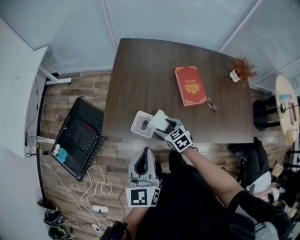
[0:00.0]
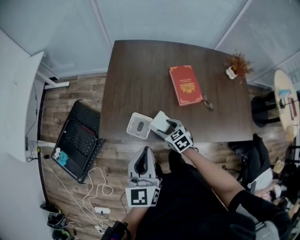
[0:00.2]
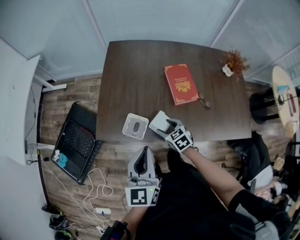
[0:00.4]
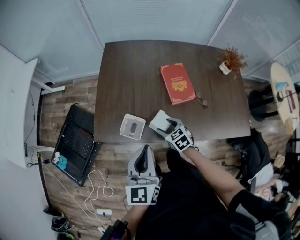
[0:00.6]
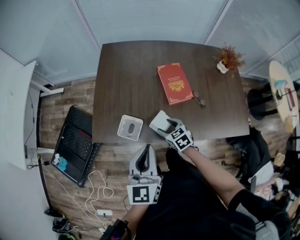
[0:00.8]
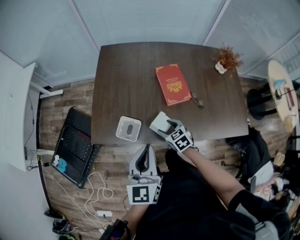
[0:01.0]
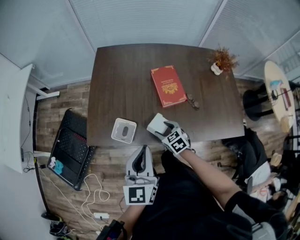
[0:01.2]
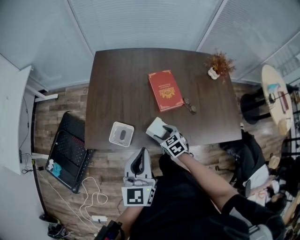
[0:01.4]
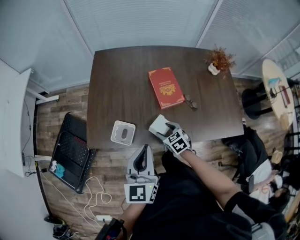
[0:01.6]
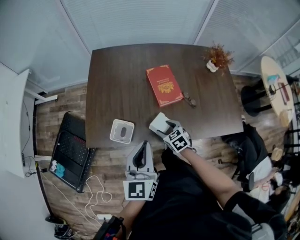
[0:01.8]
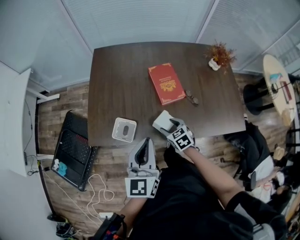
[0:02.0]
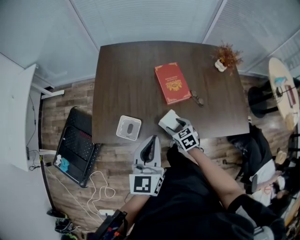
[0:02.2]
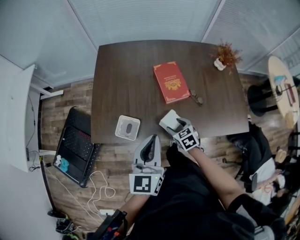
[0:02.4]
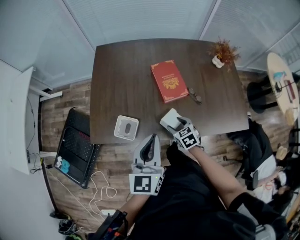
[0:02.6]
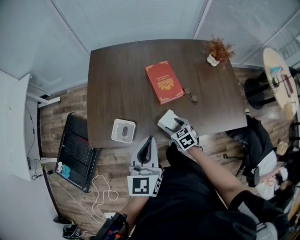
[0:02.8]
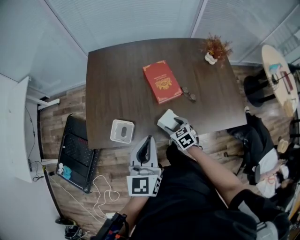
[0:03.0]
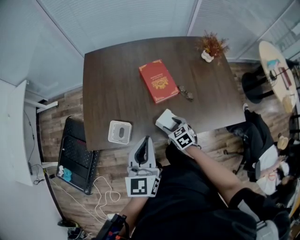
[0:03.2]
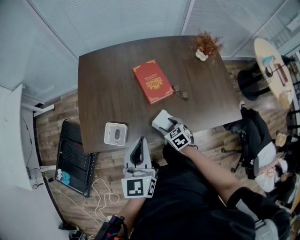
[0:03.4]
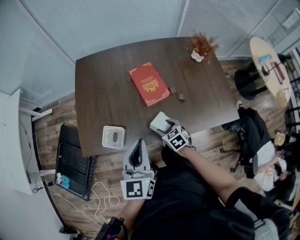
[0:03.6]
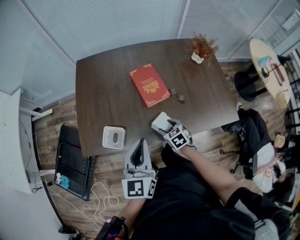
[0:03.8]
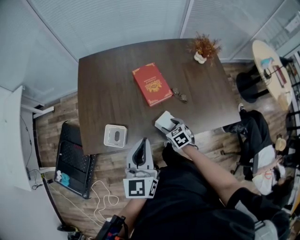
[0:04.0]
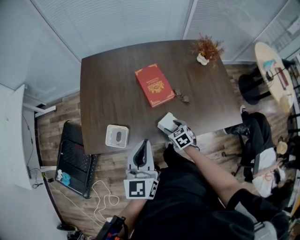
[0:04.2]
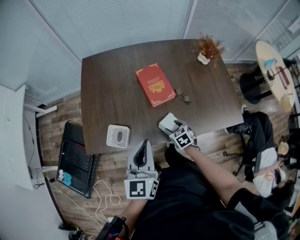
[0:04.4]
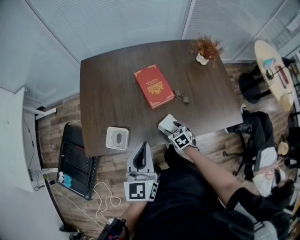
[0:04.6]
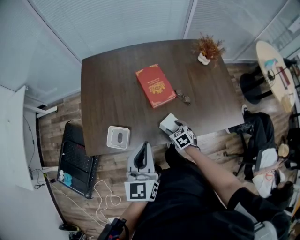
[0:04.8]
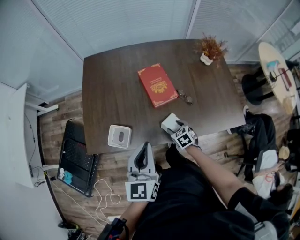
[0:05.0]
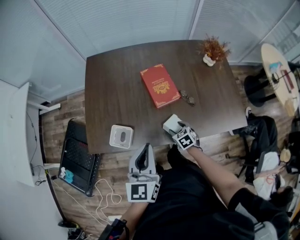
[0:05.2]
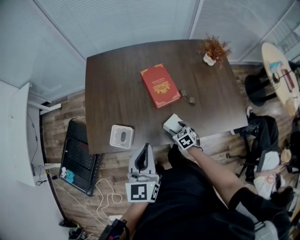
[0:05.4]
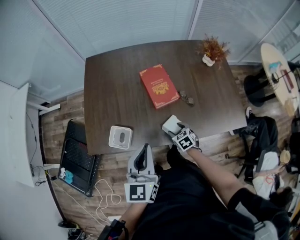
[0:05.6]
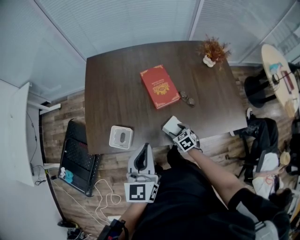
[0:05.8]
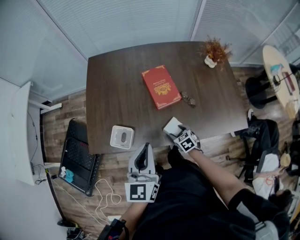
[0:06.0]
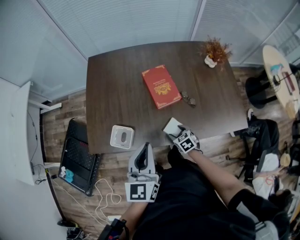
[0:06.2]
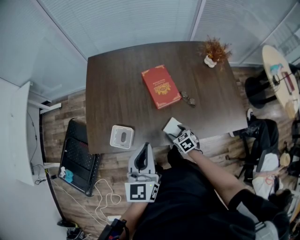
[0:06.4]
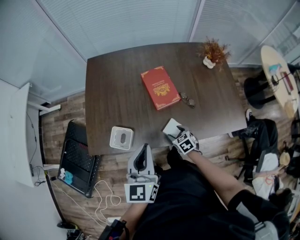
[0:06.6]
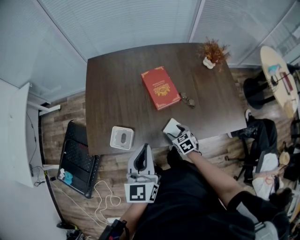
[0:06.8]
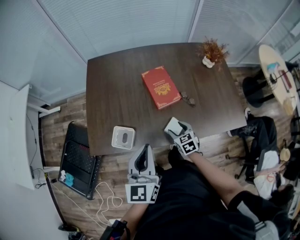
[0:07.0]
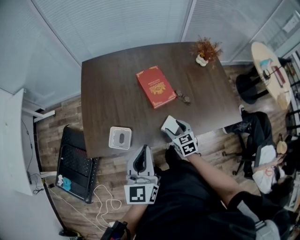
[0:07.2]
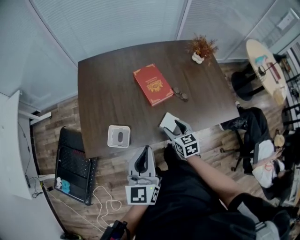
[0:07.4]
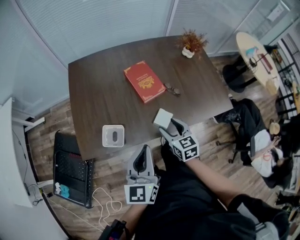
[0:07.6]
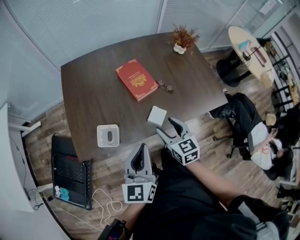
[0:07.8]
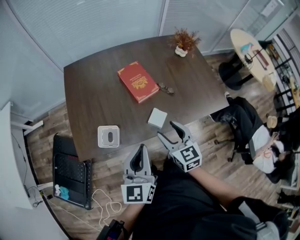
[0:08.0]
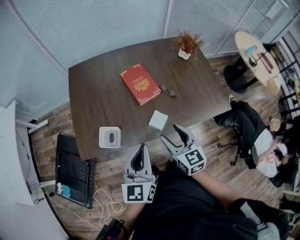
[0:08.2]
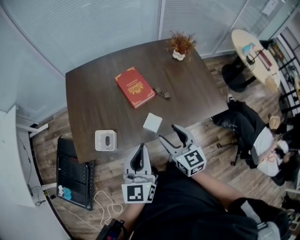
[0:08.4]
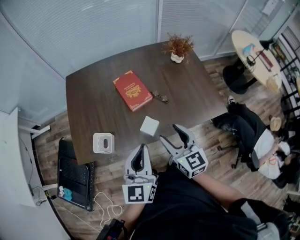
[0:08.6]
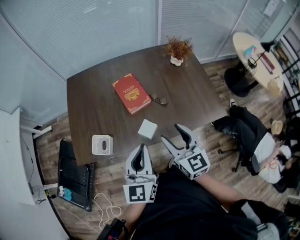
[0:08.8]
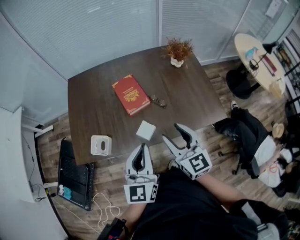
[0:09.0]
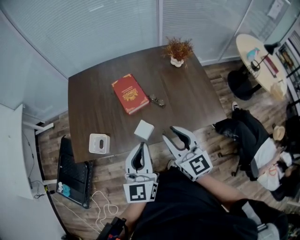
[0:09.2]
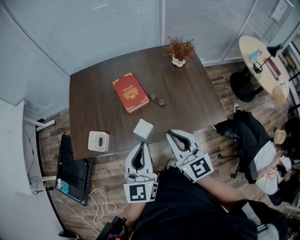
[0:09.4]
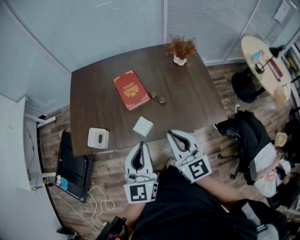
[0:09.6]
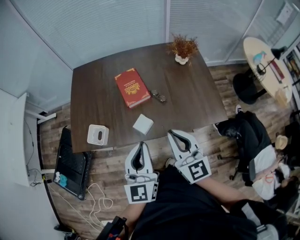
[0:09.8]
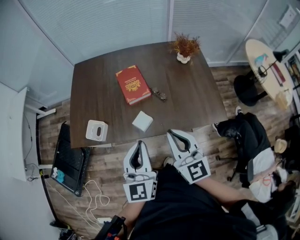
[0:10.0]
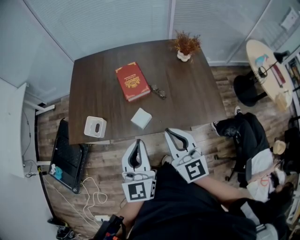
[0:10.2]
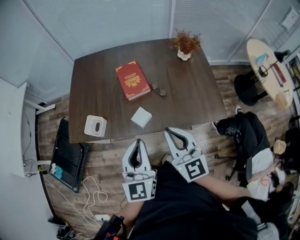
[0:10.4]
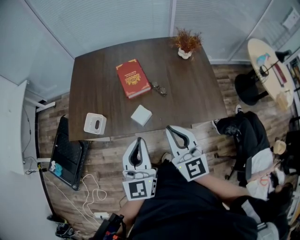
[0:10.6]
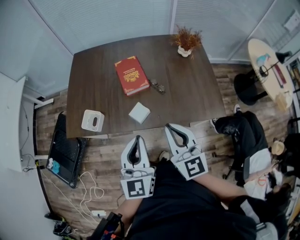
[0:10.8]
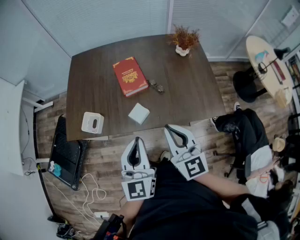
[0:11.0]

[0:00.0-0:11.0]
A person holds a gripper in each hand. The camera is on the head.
0.0 to 1.6 s: The grippers both shift to the right by approximately 10 cm.
1.6 to 3.2 s: The right gripper goes about 5 cm to the right.
3.2 to 4.8 s: The right gripper shifts by roughly 5 cm.
4.8 to 6.2 s: The grippers move only a little.
6.2 to 7.8 s: The right gripper shifts approximately 20 cm upward, and turns by about 30 degrees. Meanwhile the left gripper is displaced backward by about 5 cm.
7.8 to 9.4 s: The left gripper shifts some 15 cm to the right; the right gripper travels to the right and upward by some 20 cm, changes its angle by approximately 30 degrees, and closes up.
9.4 to 11.0 s: The left gripper changes place by some 5 cm.

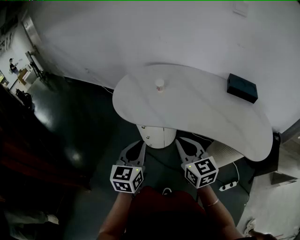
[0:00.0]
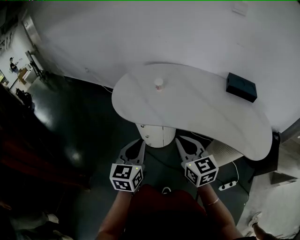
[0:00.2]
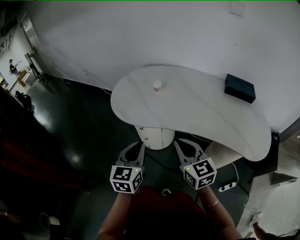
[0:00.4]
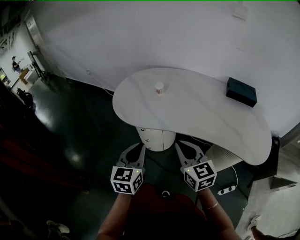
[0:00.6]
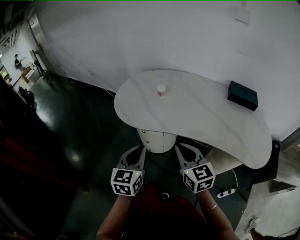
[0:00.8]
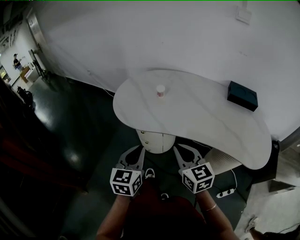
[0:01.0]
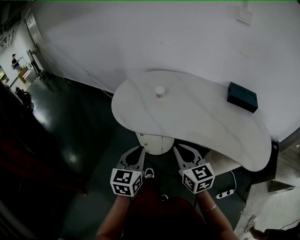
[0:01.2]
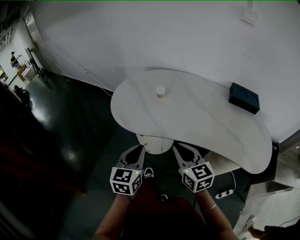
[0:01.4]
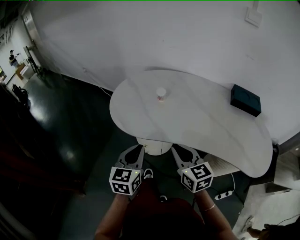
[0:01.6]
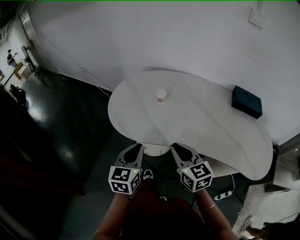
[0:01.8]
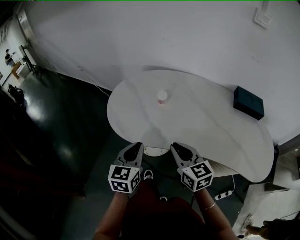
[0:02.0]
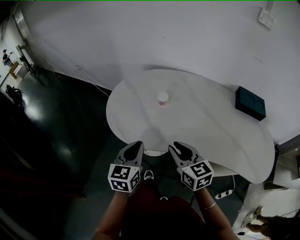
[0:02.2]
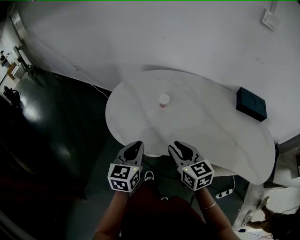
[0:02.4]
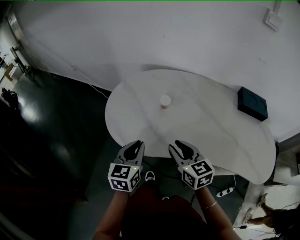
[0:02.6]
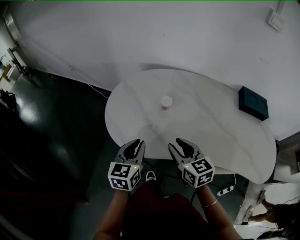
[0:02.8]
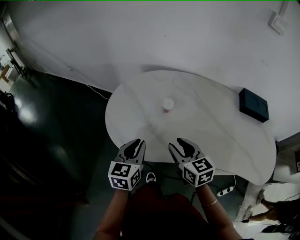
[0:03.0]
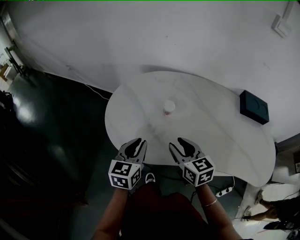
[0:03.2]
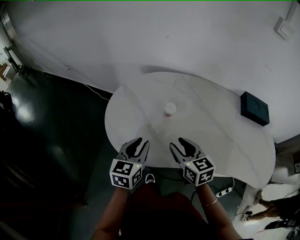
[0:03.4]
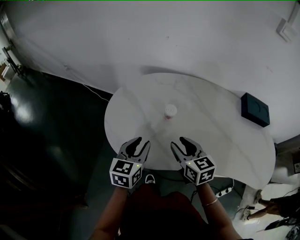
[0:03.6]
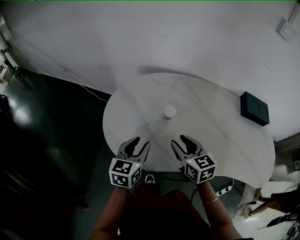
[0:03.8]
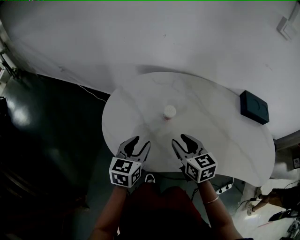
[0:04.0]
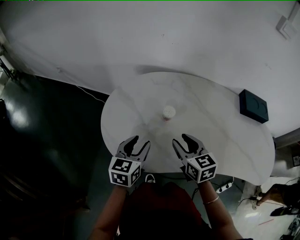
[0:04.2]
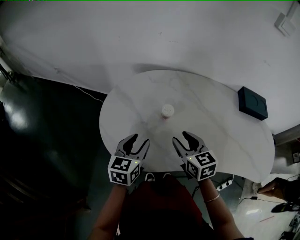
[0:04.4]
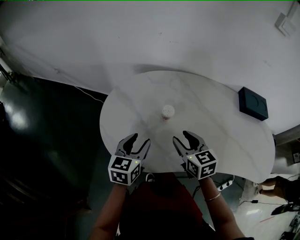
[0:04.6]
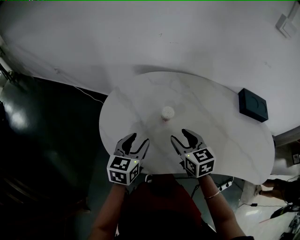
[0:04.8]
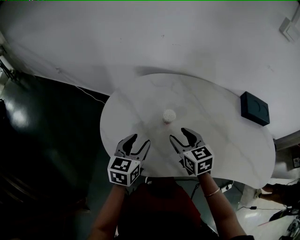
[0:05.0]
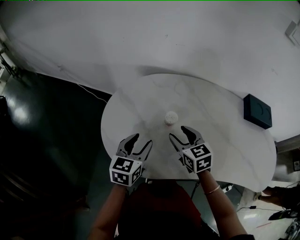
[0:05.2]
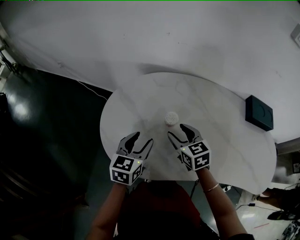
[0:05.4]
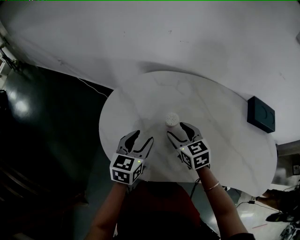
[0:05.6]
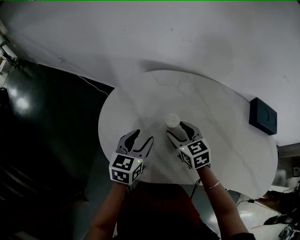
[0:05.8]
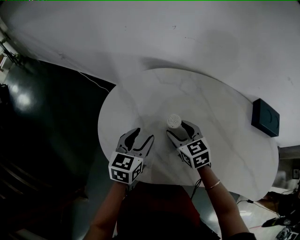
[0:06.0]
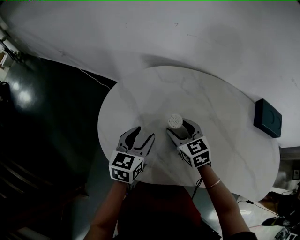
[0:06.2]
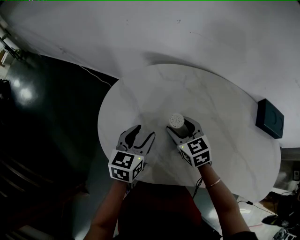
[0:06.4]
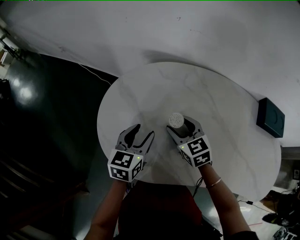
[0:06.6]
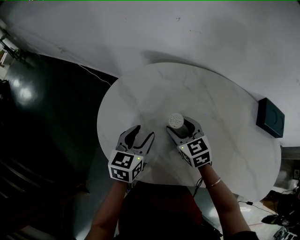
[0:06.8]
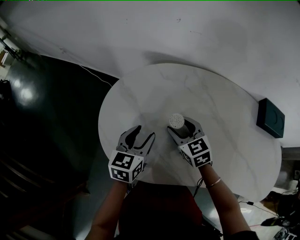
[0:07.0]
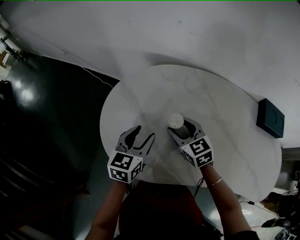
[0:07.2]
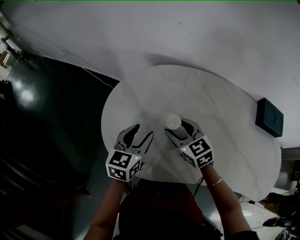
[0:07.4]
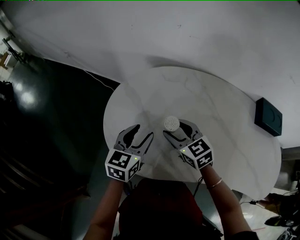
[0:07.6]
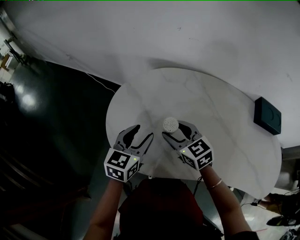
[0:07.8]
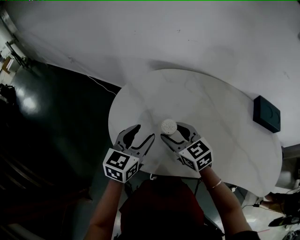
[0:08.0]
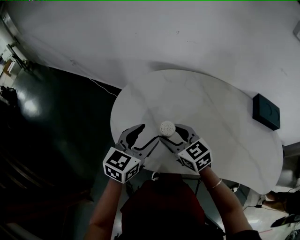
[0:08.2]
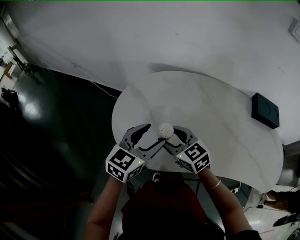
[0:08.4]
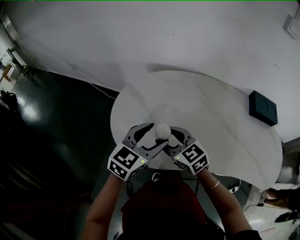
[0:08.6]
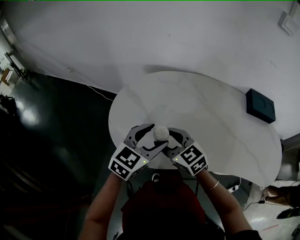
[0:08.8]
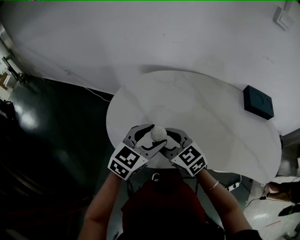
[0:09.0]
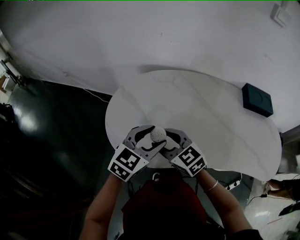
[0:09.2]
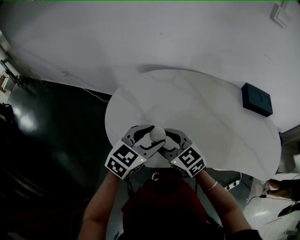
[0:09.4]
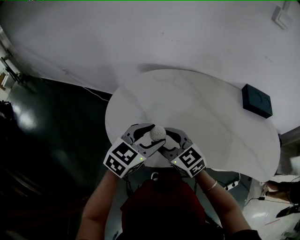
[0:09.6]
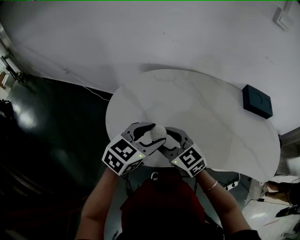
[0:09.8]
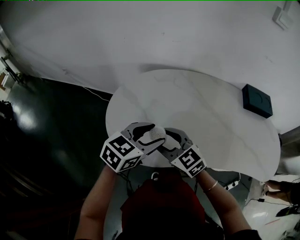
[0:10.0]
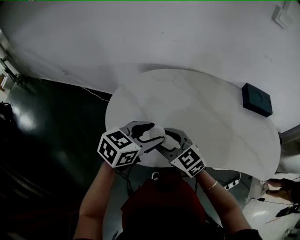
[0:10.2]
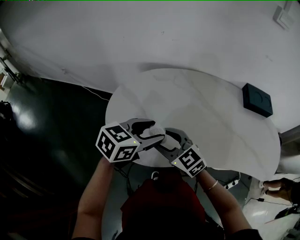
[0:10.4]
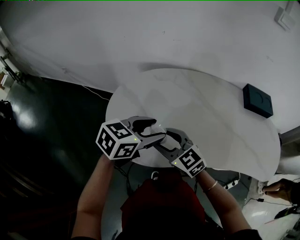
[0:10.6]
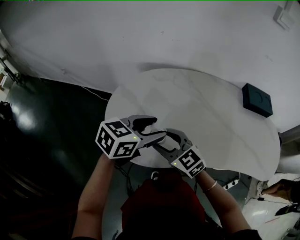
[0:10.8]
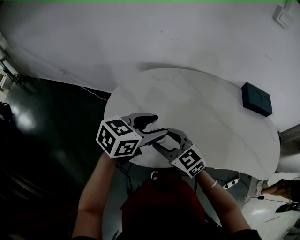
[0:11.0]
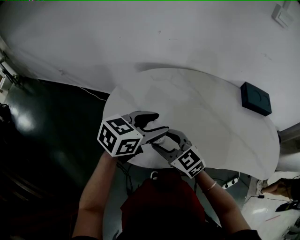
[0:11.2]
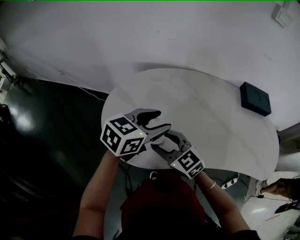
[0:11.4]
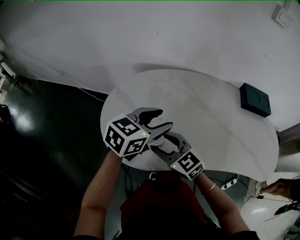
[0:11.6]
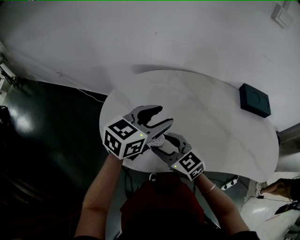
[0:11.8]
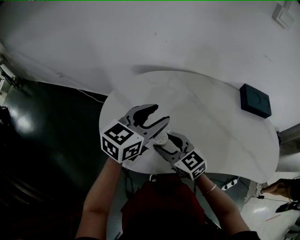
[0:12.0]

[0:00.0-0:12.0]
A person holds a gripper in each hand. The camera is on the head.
0.0 to 1.6 s: Both grippers move forward, roughly 5 cm.
1.6 to 3.0 s: Both grippers travel together forward, about 15 cm. The right gripper opens up.
3.0 to 4.4 s: The grippers both shift forward by some 10 cm. The left gripper opens.
4.4 to 6.0 s: The left gripper is displaced forward by about 5 cm, while the right gripper moves forward and downward, roughly 10 cm.
6.0 to 7.6 s: The right gripper shifts by some 5 cm.
7.6 to 9.0 s: The right gripper travels backward and upward by about 10 cm. The left gripper shifts some 15 cm backward, upward and to the right, and rotates some 30 degrees.
9.0 to 10.4 s: The left gripper rotates some 20 degrees.
10.4 to 12.0 s: The left gripper goes about 10 cm forward.

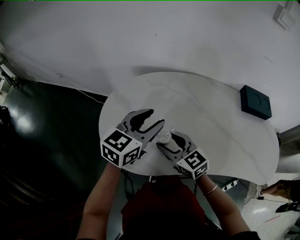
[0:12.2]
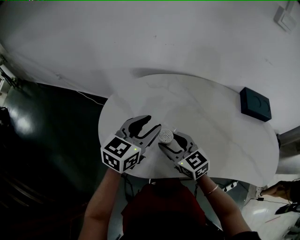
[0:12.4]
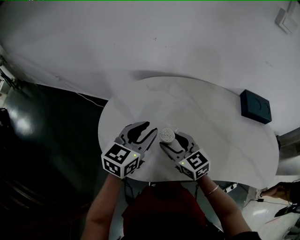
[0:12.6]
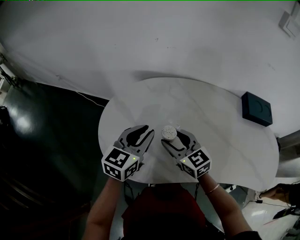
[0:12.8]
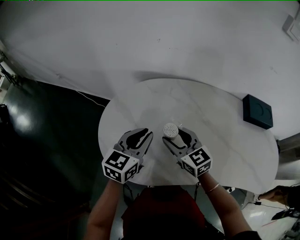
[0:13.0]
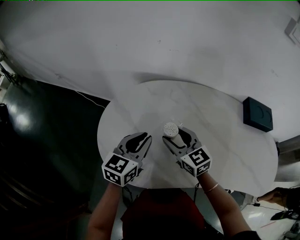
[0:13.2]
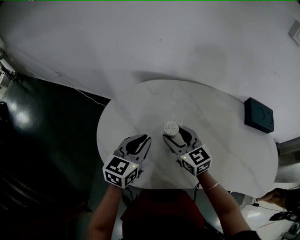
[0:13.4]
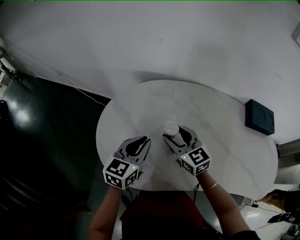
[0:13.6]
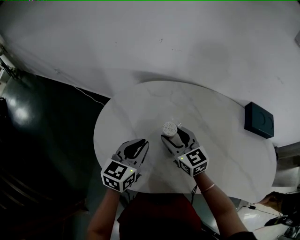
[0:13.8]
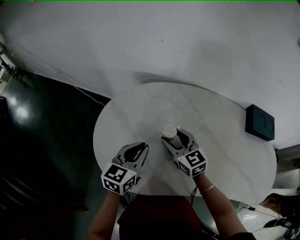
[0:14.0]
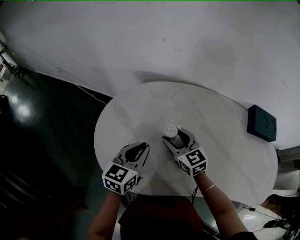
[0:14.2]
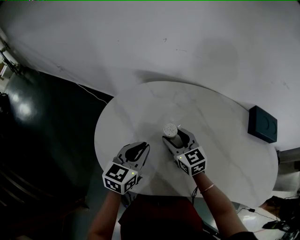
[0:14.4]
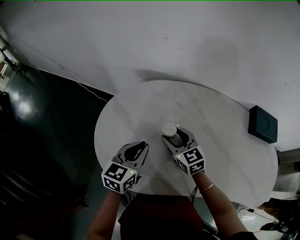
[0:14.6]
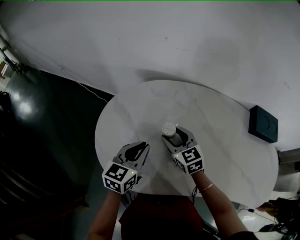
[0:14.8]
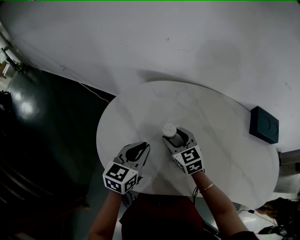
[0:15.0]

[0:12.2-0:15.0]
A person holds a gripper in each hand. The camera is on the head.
12.2 to 13.6 s: The right gripper heads forward, covering roughly 10 cm; the left gripper is displaced downward by approximately 10 cm, and closes its fingers.
13.6 to 15.0 s: The right gripper moves downward, roughly 5 cm.
